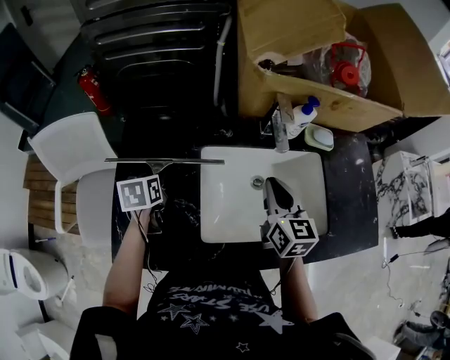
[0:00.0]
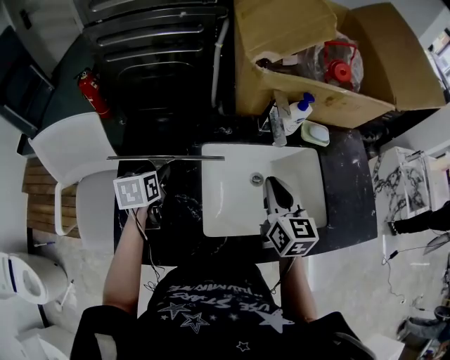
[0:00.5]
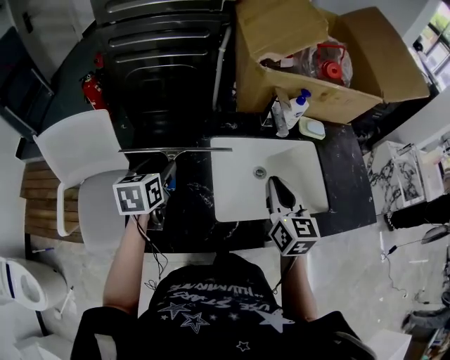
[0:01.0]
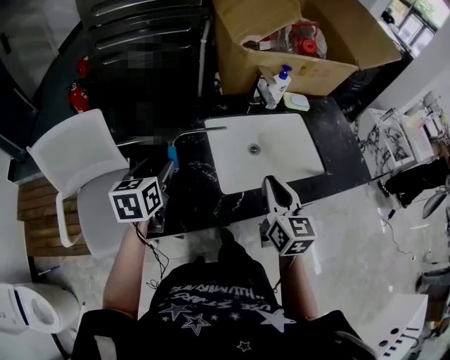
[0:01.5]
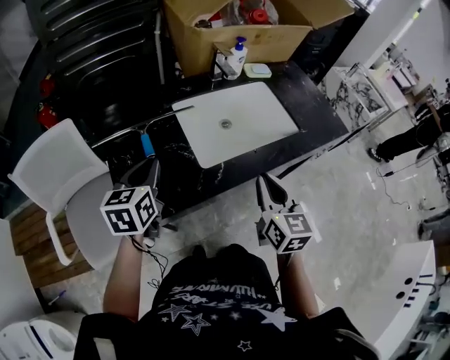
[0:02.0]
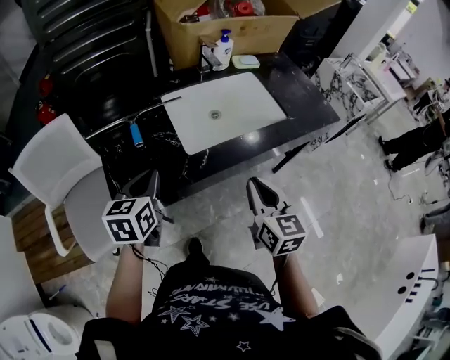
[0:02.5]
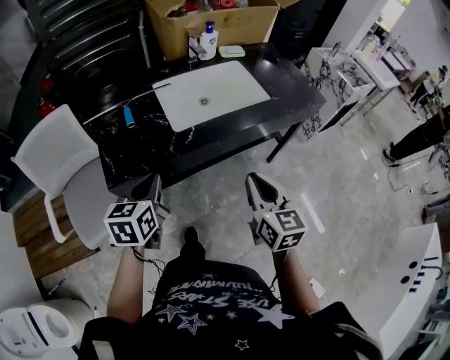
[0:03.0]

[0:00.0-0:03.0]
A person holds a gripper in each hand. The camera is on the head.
0:00.0 to 0:01.5: The left gripper moves backward and upward, approximately 15 cm, rotates about 30 degrees, and opens; the right gripper shifts approximately 20 cm backward.
0:01.5 to 0:03.0: The two grippers go approximately 30 cm backward and to the right. The left gripper closes up.

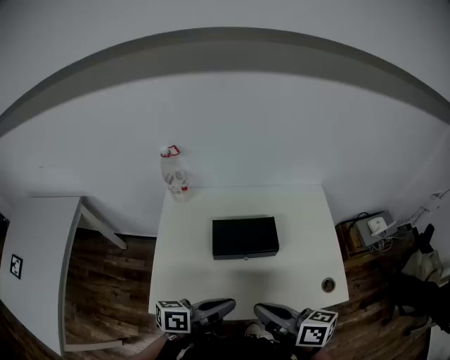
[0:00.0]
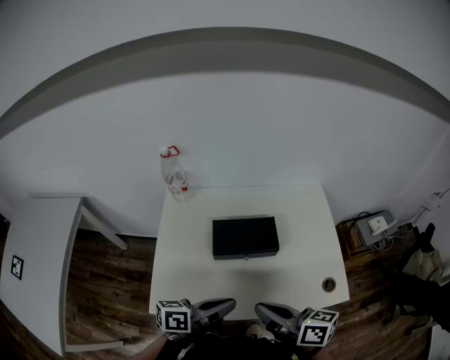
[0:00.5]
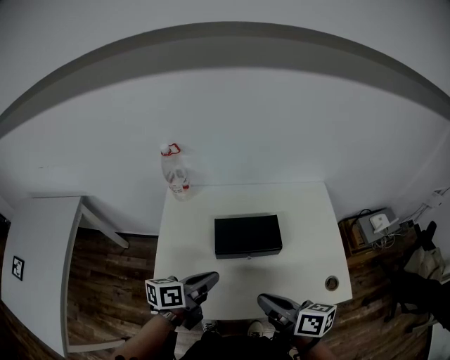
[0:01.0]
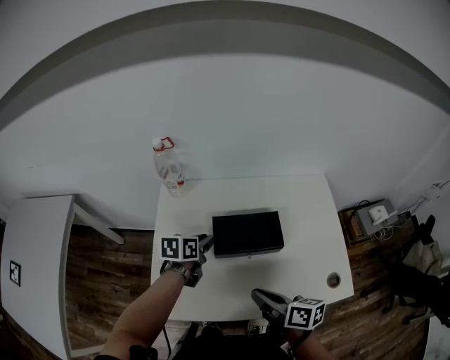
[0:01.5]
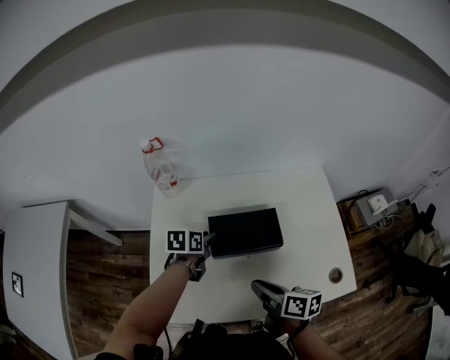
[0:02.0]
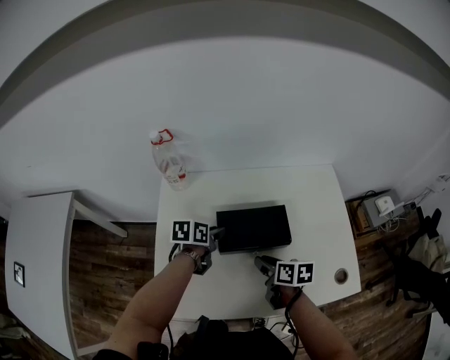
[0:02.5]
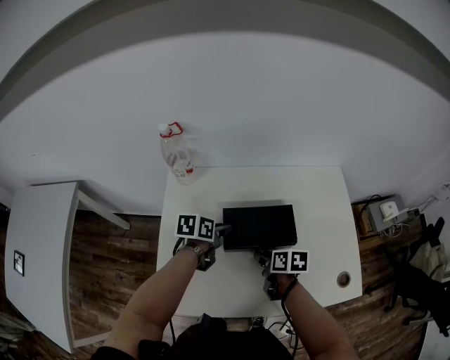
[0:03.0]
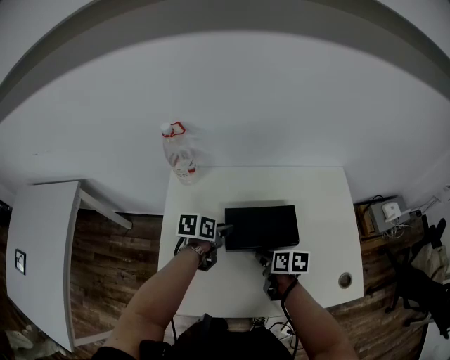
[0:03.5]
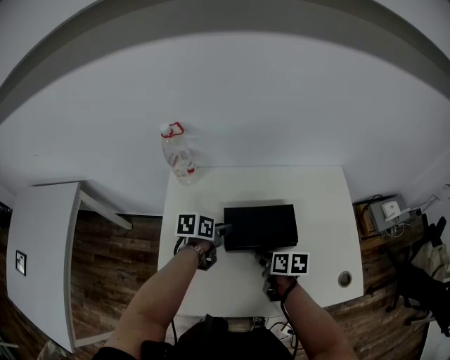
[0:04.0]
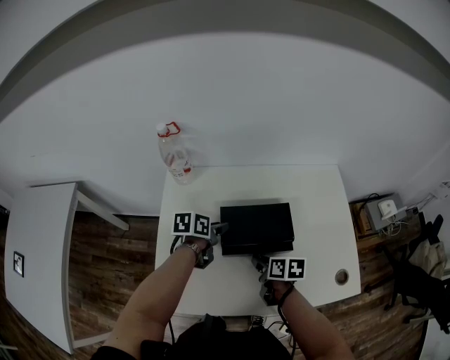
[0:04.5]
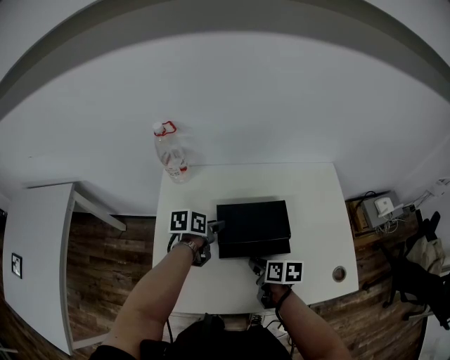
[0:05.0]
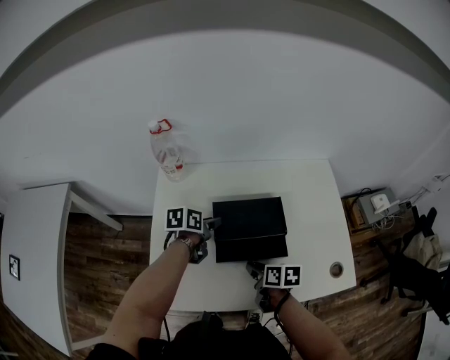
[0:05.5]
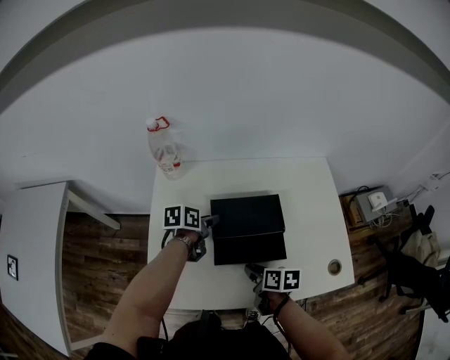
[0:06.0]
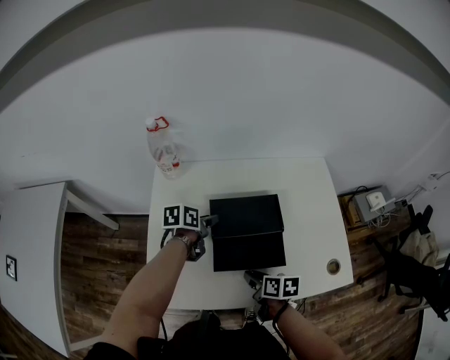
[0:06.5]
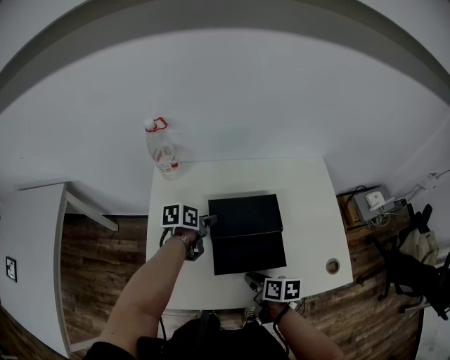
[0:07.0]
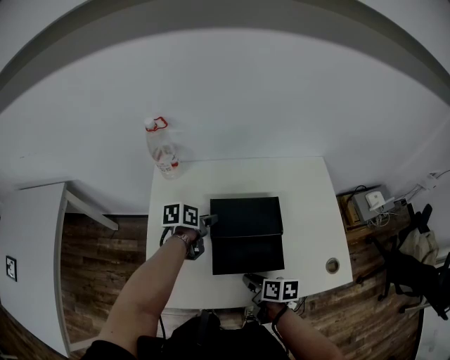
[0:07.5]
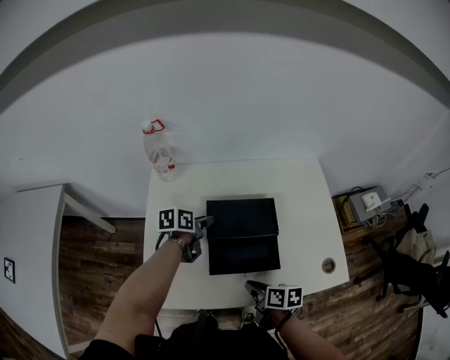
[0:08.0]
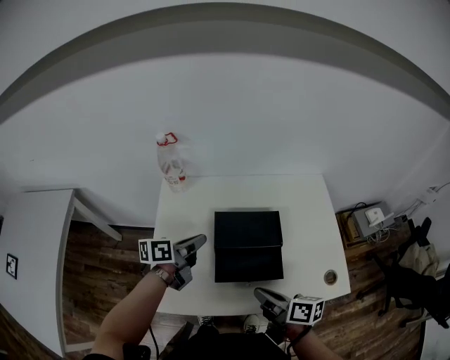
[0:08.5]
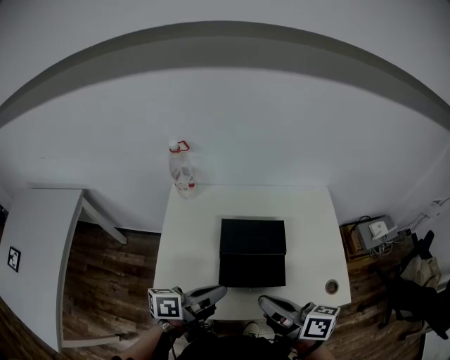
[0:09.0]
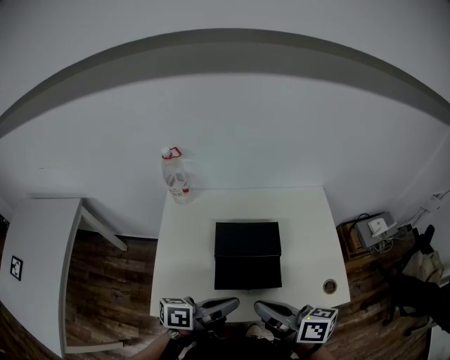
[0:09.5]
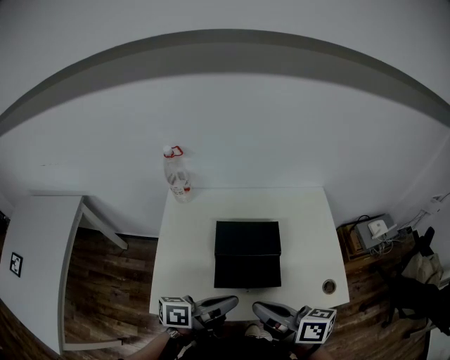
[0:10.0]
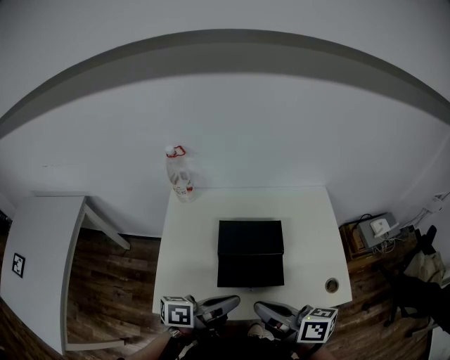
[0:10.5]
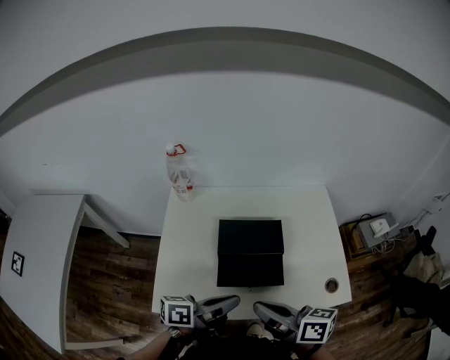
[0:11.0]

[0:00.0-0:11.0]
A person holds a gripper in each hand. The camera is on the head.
0:00.0 to 0:02.0: The right gripper moves downward and forward, approximately 15 cm. Meanwhile the left gripper moves forward and downward, about 30 cm, points its fingers approximately 40 degrees further downward, and opens up.
0:02.0 to 0:03.5: The right gripper heads downward and forward, covering approximately 15 cm, and swivels about 20 degrees.
0:03.5 to 0:05.5: The right gripper is displaced backward by about 5 cm.
0:05.5 to 0:07.5: The right gripper travels backward by some 5 cm.
0:07.5 to 0:09.0: The right gripper travels upward by roughly 25 cm, and tilts its fingers approximately 30 degrees upward. The left gripper goes approximately 25 cm backward and upward, tips its fingers upward by roughly 40 degrees, and closes.
0:09.0 to 0:11.0: The left gripper changes place by some 5 cm.

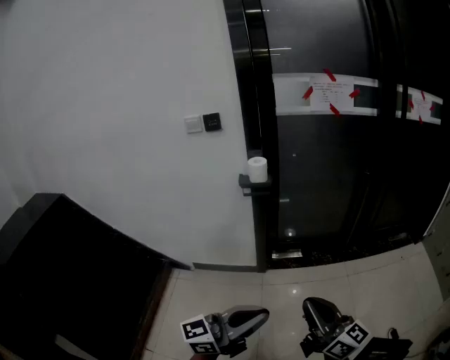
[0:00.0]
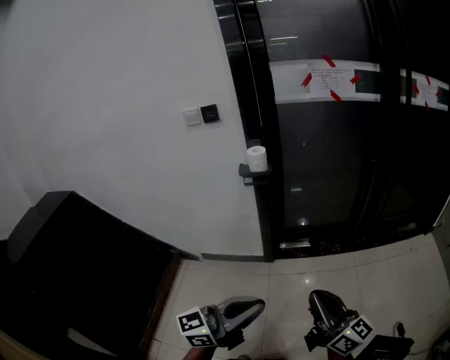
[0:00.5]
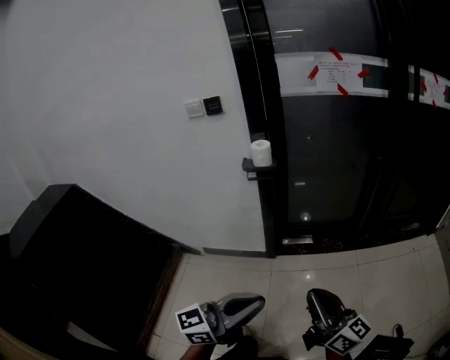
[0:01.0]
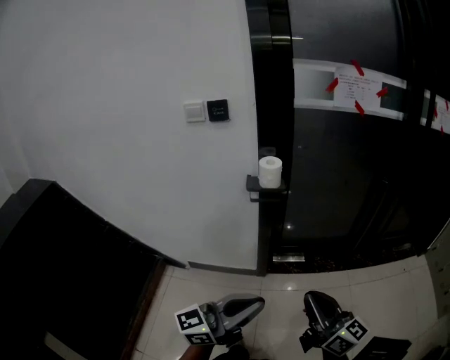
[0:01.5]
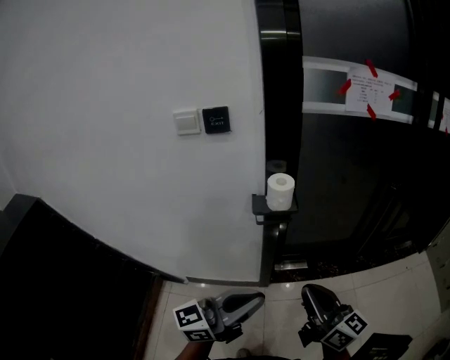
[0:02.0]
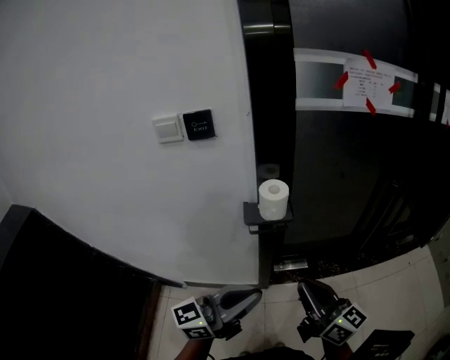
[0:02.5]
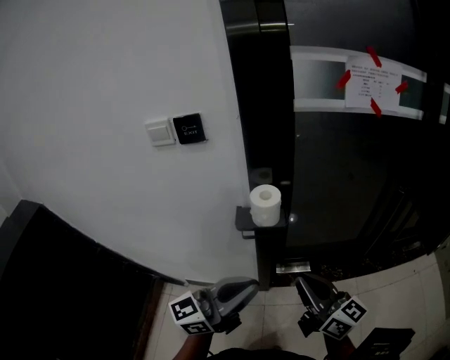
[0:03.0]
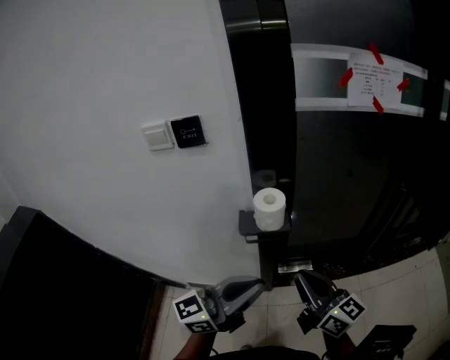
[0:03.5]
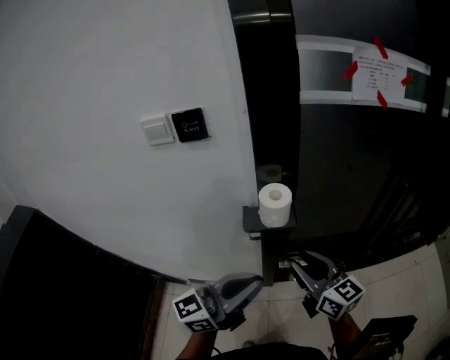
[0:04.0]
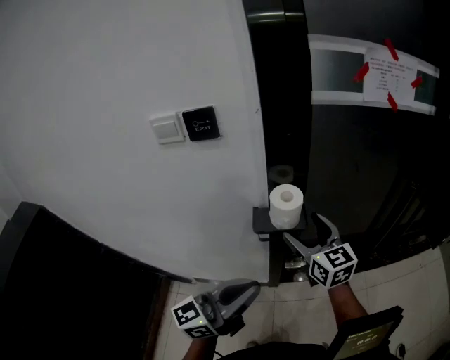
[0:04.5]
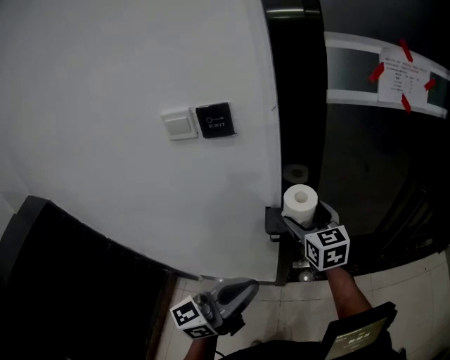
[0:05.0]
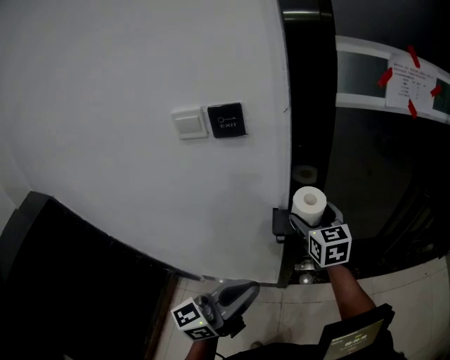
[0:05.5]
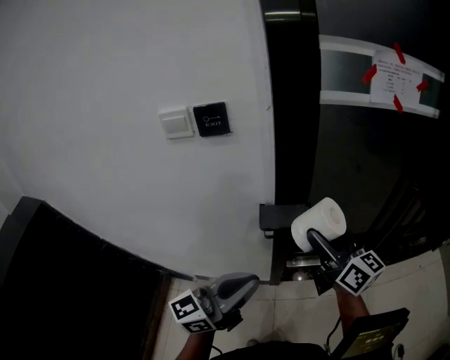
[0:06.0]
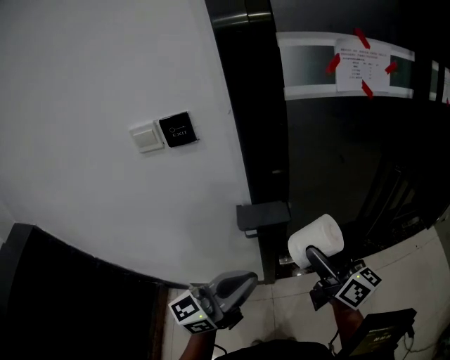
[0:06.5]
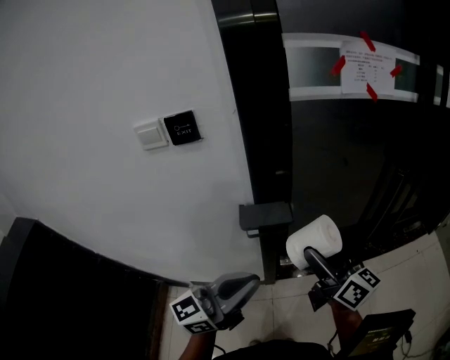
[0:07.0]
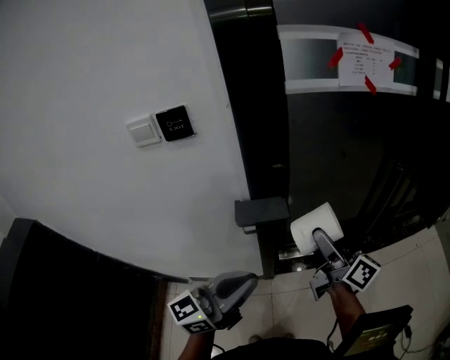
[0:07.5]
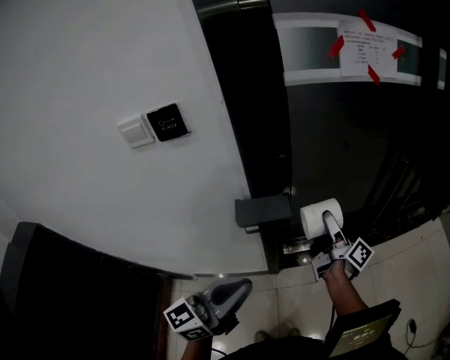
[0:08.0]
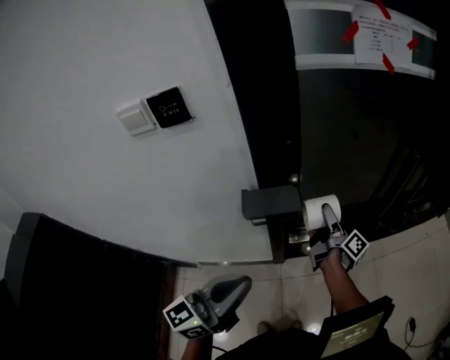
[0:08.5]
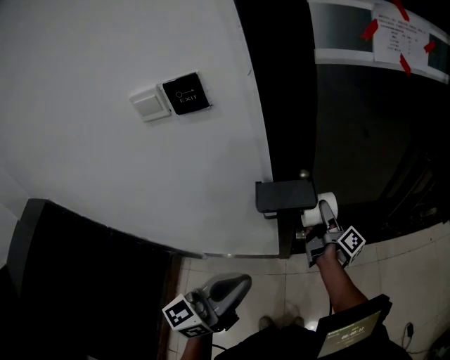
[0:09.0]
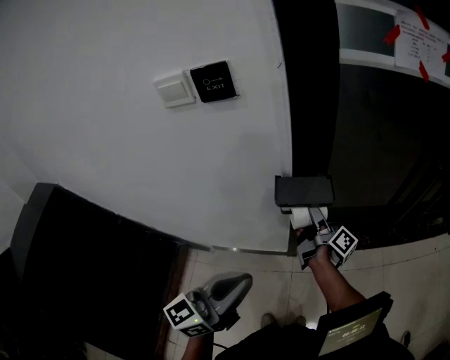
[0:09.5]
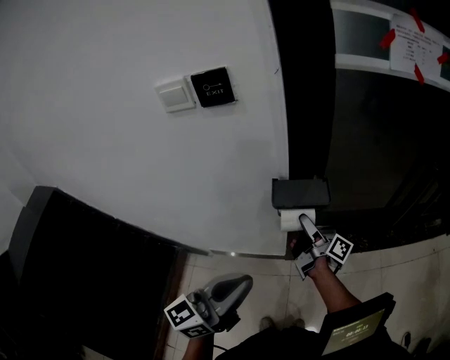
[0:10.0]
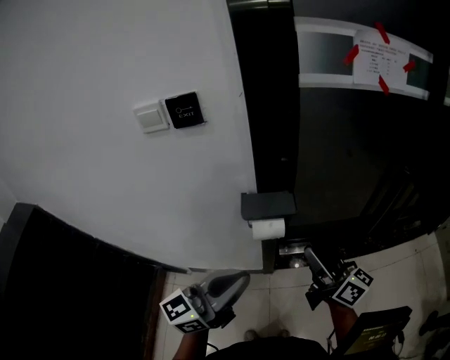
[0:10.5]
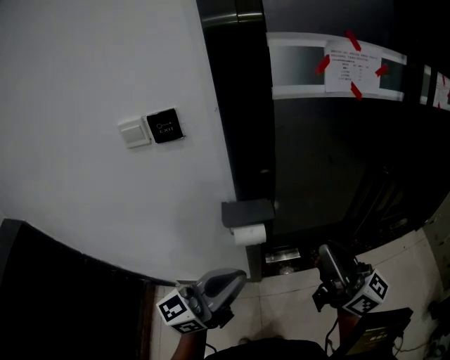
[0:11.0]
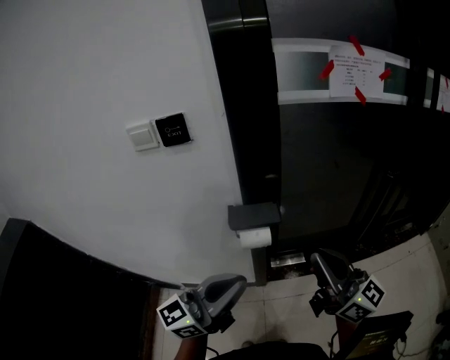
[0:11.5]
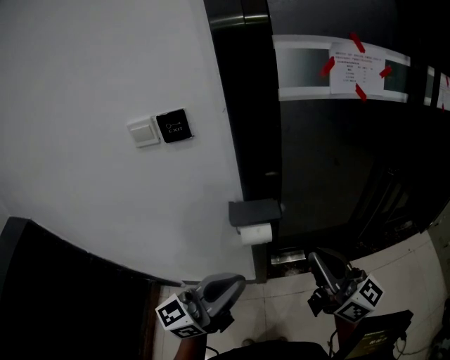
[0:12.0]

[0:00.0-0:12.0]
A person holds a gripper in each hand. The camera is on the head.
0:00.0 to 0:02.0: The grippers both shift forward and to the left by roughly 35 cm.
0:02.0 to 0:04.0: Both grippers move forward, roughly 15 cm.
0:04.0 to 0:06.0: The left gripper shifts some 5 cm to the left, while the right gripper shifts roughly 10 cm upward and forward, and opens.
0:06.0 to 0:08.0: The right gripper heads downward, to the right and forward, covering some 20 cm, and rotates around the line of its fingers by roughly 50 degrees, clockwise from behind.
0:08.0 to 0:10.0: The left gripper is displaced to the left by about 5 cm. Meanwhile the right gripper travels to the left and downward by about 20 cm, and changes its angle by some 20 degrees.
0:10.0 to 0:12.0: The left gripper heads to the right and upward, covering roughly 10 cm; the right gripper goes roughly 30 cm upward, backward and to the right, rolls counterclockwise, seen from behind, by about 70 degrees, and closes its fingers.
